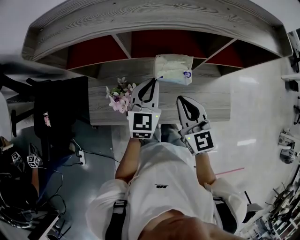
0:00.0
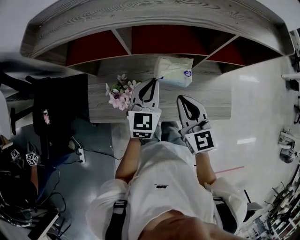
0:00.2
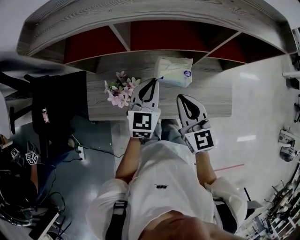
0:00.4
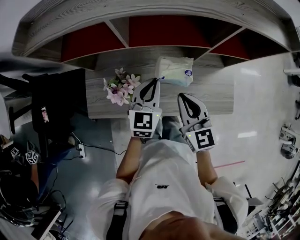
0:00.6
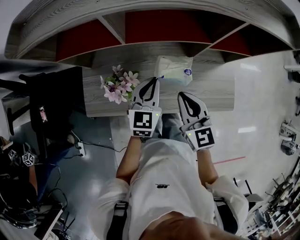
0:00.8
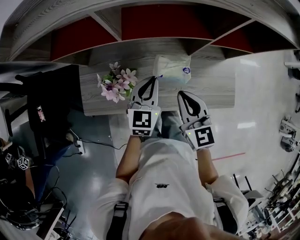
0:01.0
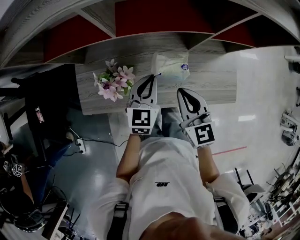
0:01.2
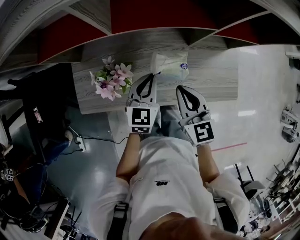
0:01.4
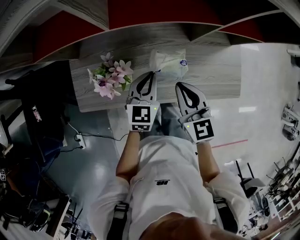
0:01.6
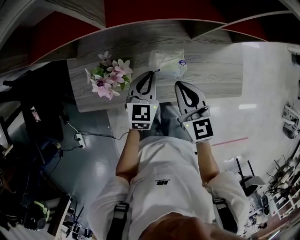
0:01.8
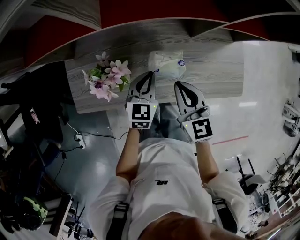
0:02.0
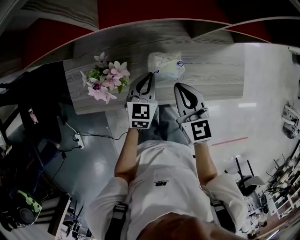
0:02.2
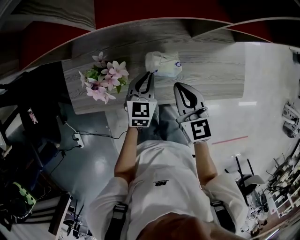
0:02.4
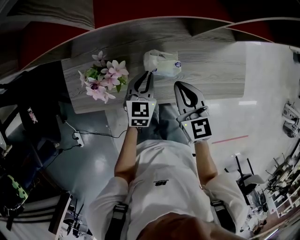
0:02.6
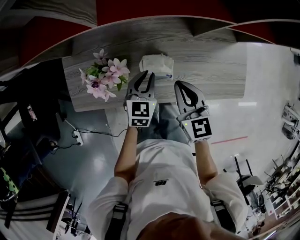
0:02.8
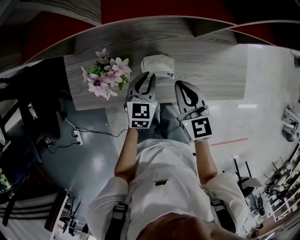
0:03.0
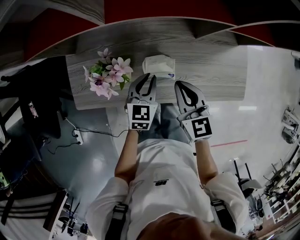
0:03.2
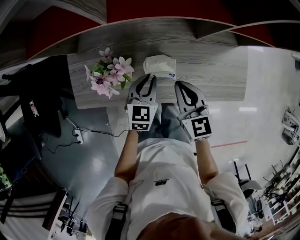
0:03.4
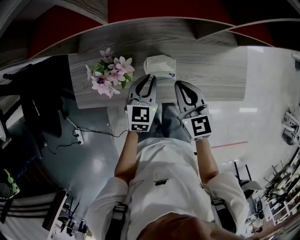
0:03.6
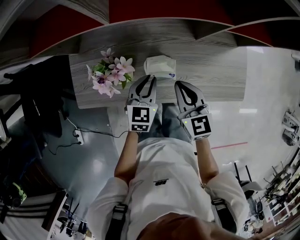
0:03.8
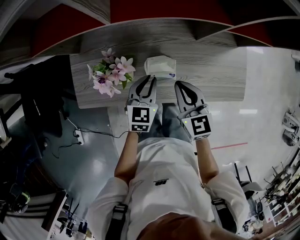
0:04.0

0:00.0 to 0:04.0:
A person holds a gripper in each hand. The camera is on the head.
0:00.0 to 0:01.4: The grippers both shift downward by approximately 10 cm.
0:01.4 to 0:02.6: The right gripper heads downward, covering roughly 5 cm; the left gripper is displaced downward by roughly 10 cm.
0:02.6 to 0:04.0: The grippers move only a little.

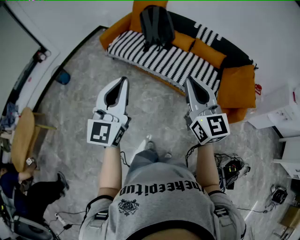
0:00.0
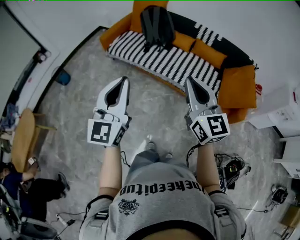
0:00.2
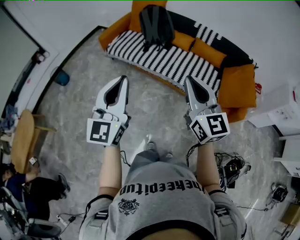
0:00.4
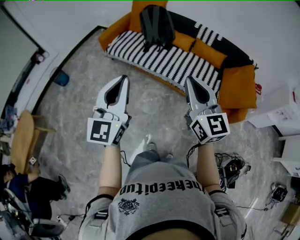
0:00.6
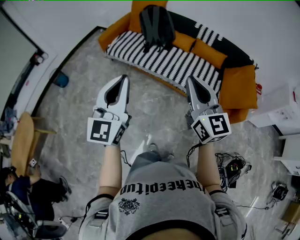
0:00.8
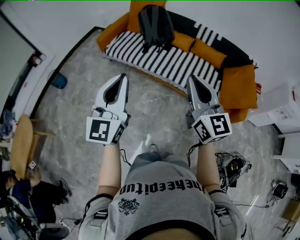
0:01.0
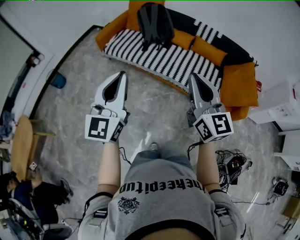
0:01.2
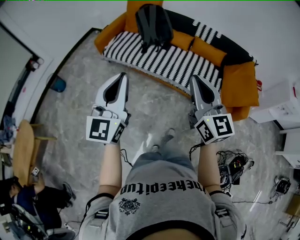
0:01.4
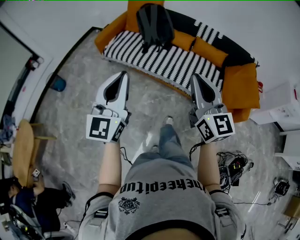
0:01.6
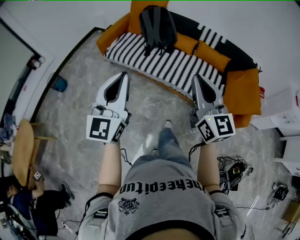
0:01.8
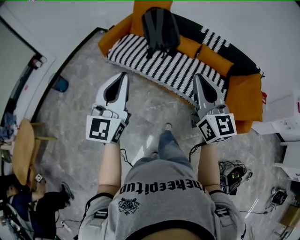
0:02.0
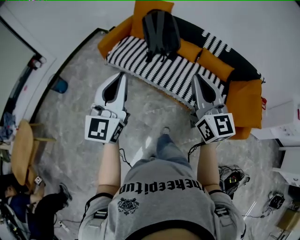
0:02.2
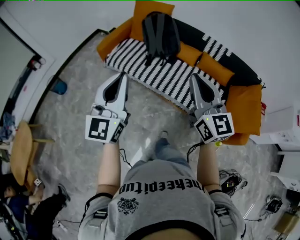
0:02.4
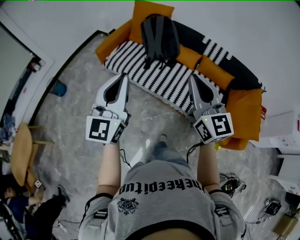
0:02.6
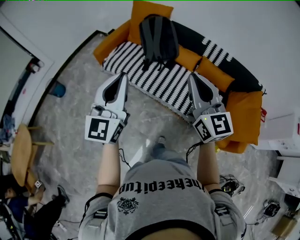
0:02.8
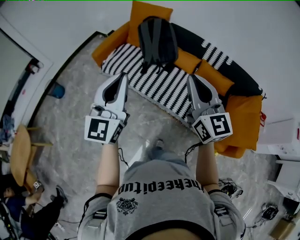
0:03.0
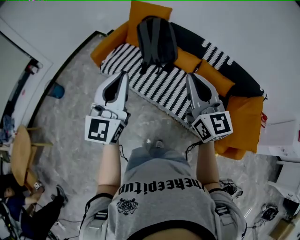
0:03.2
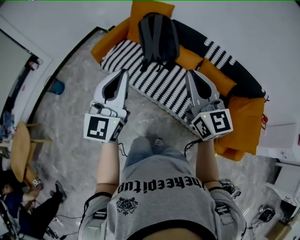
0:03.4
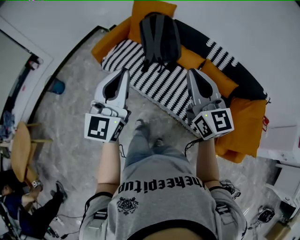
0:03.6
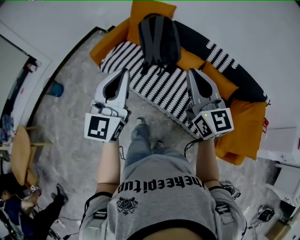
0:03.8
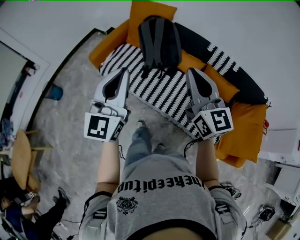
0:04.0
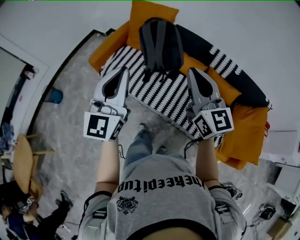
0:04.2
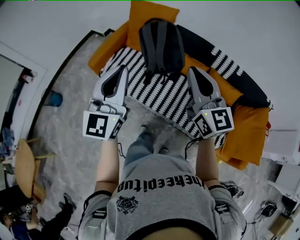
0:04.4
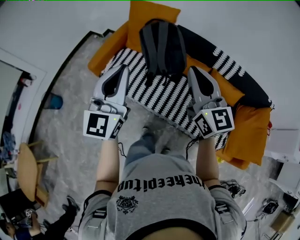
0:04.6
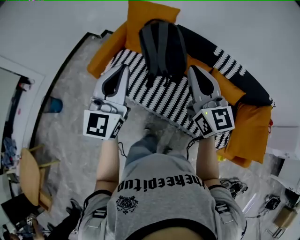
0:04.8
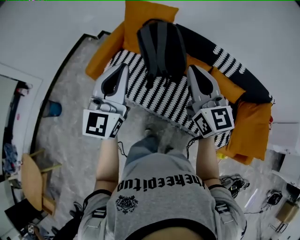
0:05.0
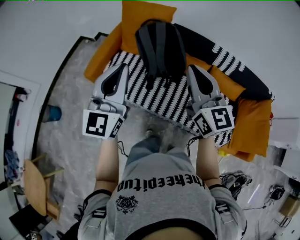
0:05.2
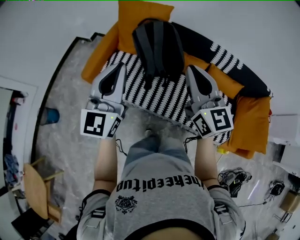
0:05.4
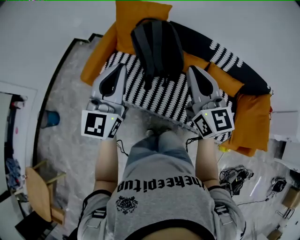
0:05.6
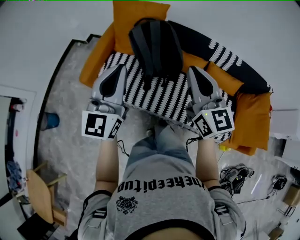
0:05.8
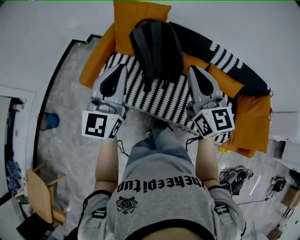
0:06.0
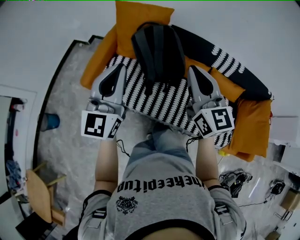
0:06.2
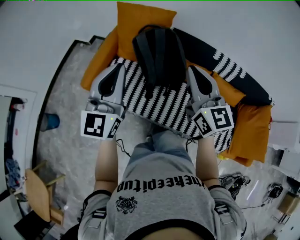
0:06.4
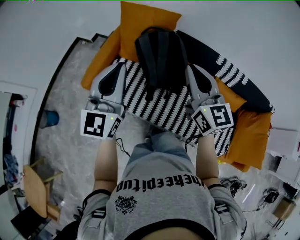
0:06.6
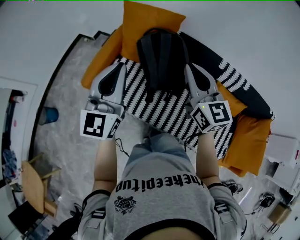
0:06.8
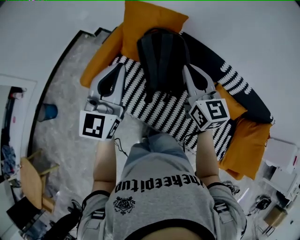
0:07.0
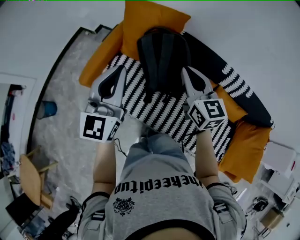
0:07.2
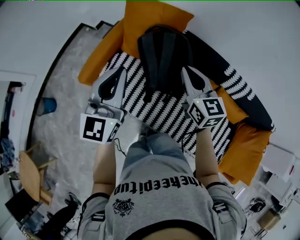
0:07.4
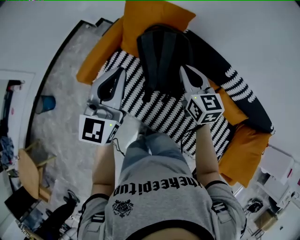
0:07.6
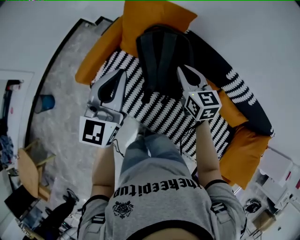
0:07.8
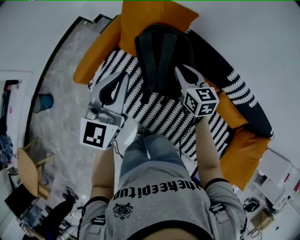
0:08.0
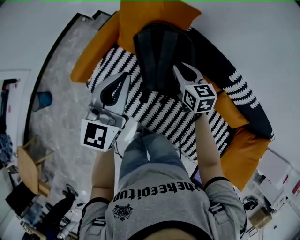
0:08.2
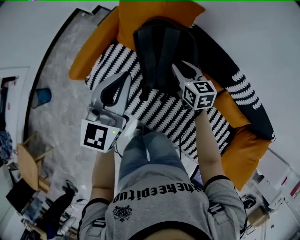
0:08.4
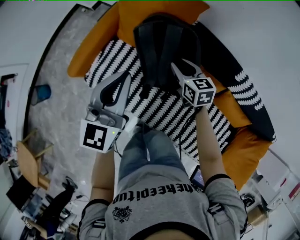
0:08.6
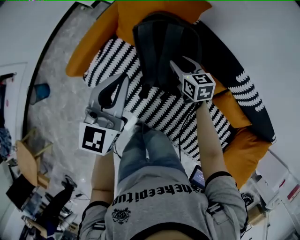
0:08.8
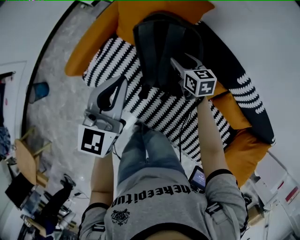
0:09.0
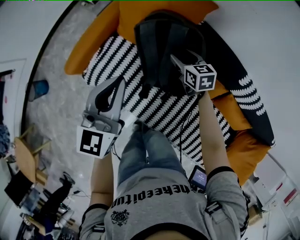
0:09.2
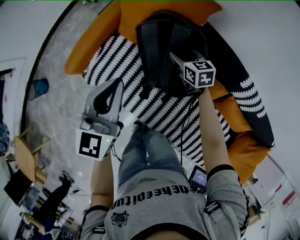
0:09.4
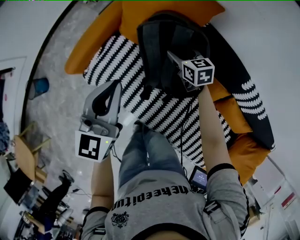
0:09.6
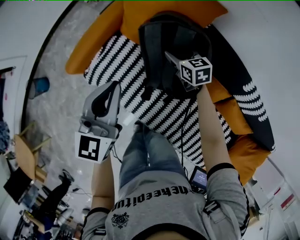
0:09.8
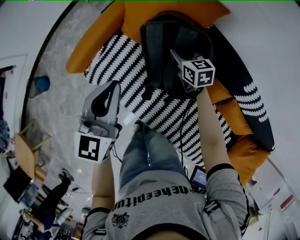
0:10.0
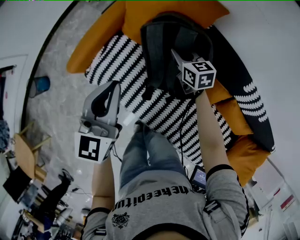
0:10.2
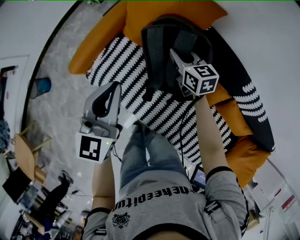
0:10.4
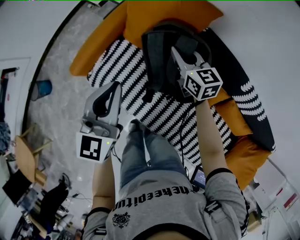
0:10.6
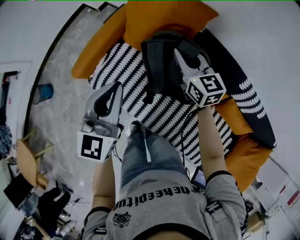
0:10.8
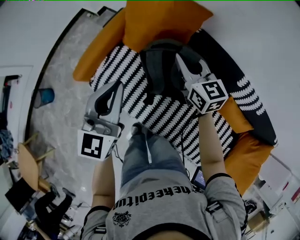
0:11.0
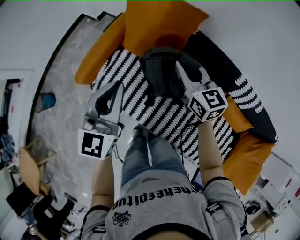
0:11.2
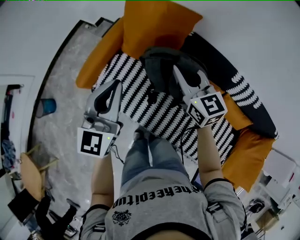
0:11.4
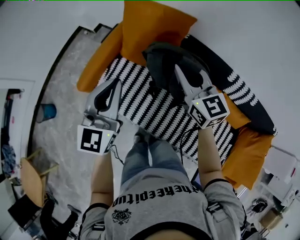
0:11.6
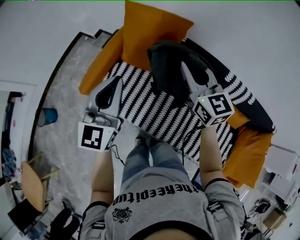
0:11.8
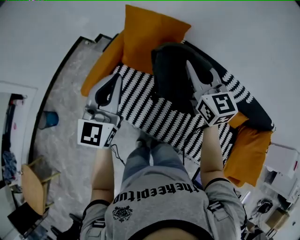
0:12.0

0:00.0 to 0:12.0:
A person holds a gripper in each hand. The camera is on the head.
0:00.0 to 0:01.6: Both grippers travel together forward, some 10 cm.
0:01.6 to 0:03.0: Both grippers travel together forward, about 25 cm.
0:03.0 to 0:04.4: The two grippers go roughly 20 cm forward.
0:04.4 to 0:06.0: Both grippers travel together forward and to the left, roughly 15 cm.
0:06.0 to 0:07.6: The left gripper moves forward, roughly 15 cm. Meanwhile the right gripper goes approximately 25 cm forward and downward, and turns by approximately 20 degrees.
0:07.6 to 0:09.0: The right gripper travels downward and forward by about 25 cm, turns by roughly 20 degrees, and opens up. Meanwhile the left gripper heads downward and forward, covering about 10 cm.
0:09.0 to 0:10.4: The right gripper moves roughly 5 cm, and closes up.
0:10.4 to 0:12.0: The left gripper travels upward and backward by some 15 cm; the right gripper shifts approximately 35 cm upward and backward, and swivels approximately 30 degrees.

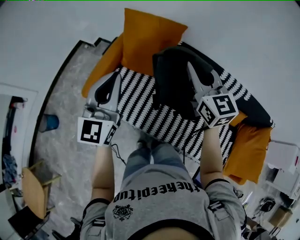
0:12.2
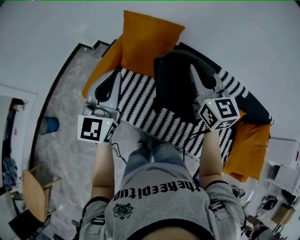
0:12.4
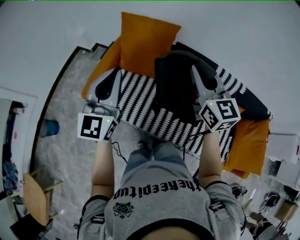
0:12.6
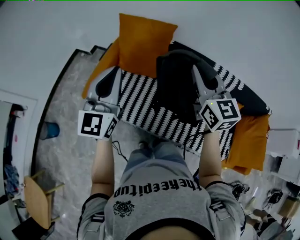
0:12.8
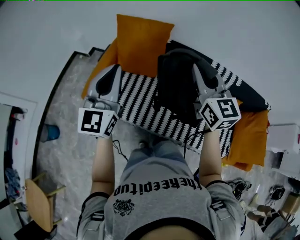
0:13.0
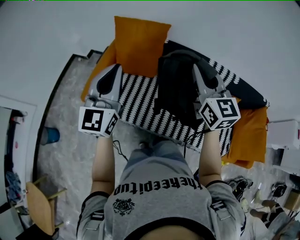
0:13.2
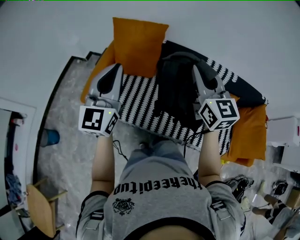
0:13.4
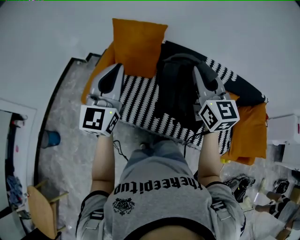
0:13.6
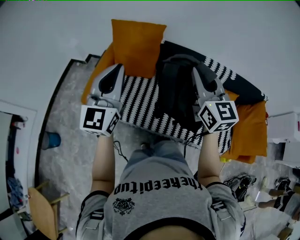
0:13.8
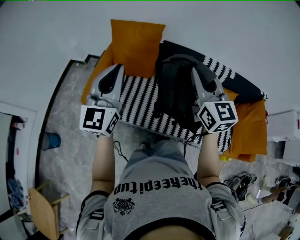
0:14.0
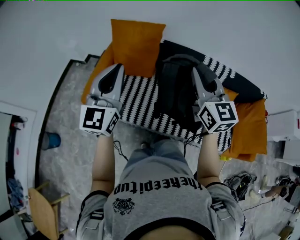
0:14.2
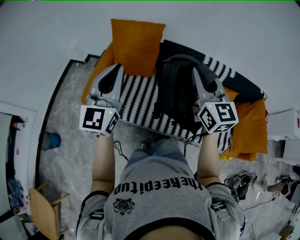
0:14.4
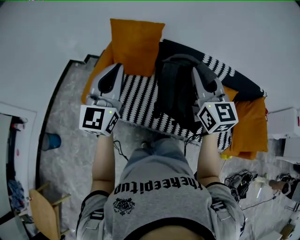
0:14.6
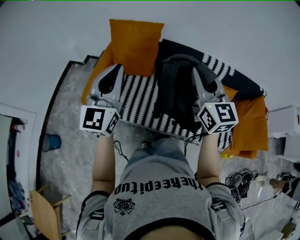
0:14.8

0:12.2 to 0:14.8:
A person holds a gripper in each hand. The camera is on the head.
0:12.2 to 0:13.4: The left gripper shifts about 5 cm backward. Meanwhile the right gripper goes roughly 15 cm backward.
0:13.4 to 0:14.8: The grippers move only a little.

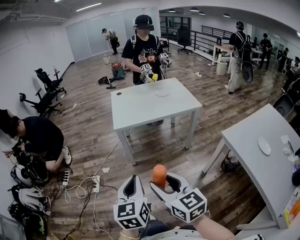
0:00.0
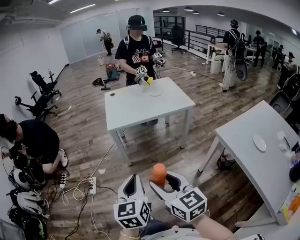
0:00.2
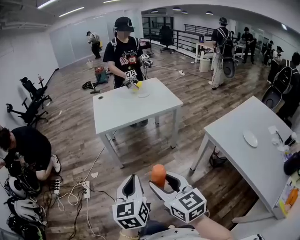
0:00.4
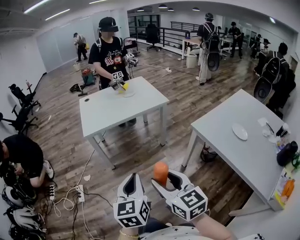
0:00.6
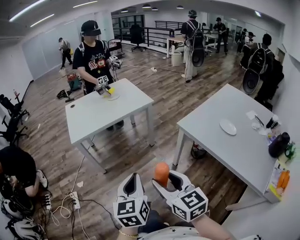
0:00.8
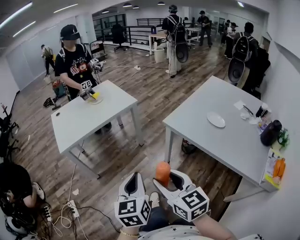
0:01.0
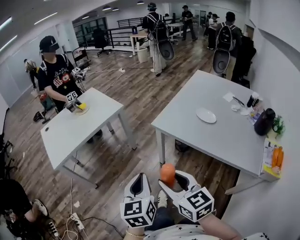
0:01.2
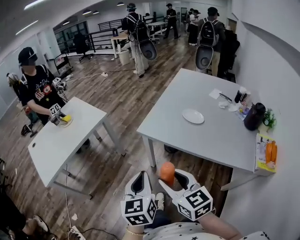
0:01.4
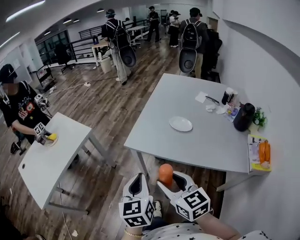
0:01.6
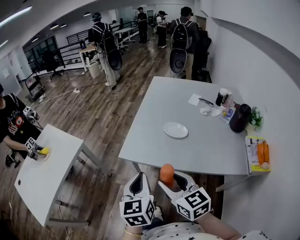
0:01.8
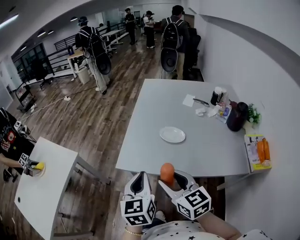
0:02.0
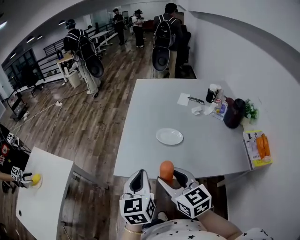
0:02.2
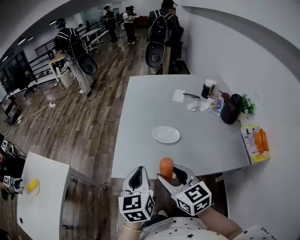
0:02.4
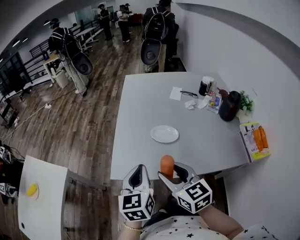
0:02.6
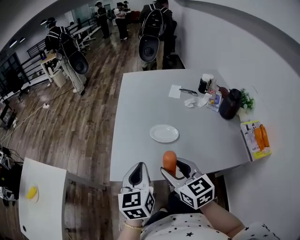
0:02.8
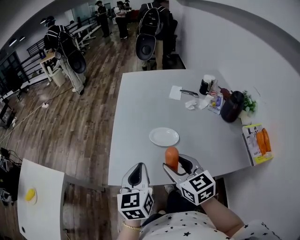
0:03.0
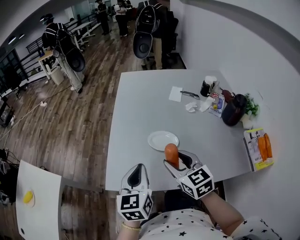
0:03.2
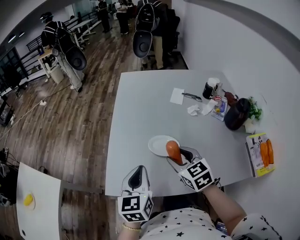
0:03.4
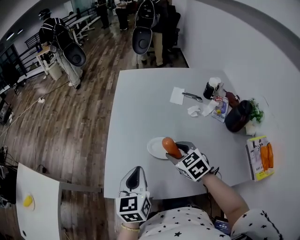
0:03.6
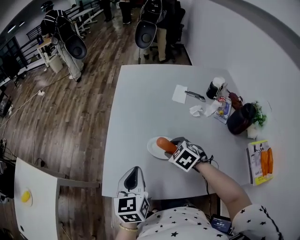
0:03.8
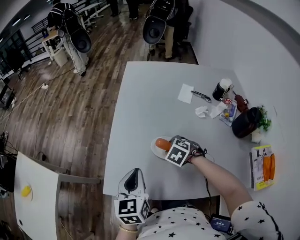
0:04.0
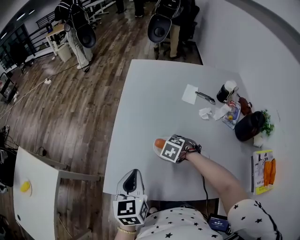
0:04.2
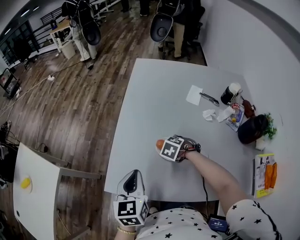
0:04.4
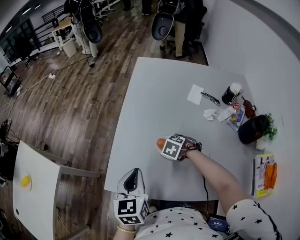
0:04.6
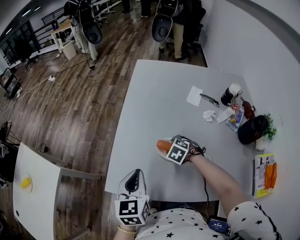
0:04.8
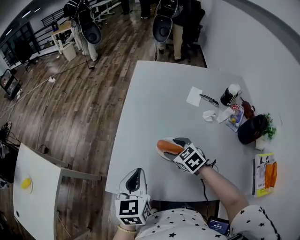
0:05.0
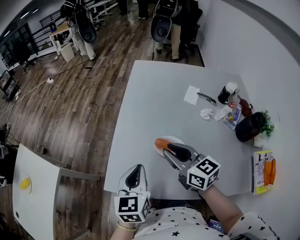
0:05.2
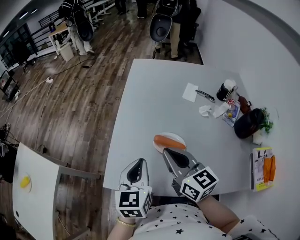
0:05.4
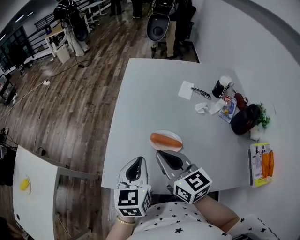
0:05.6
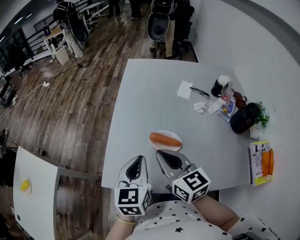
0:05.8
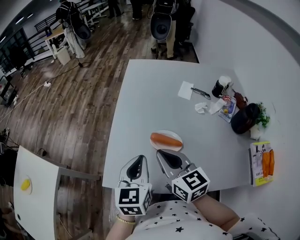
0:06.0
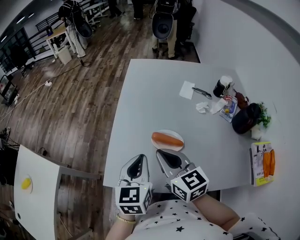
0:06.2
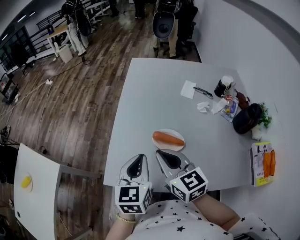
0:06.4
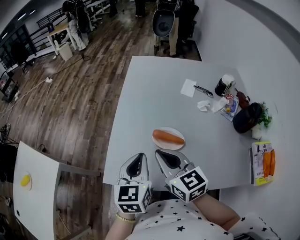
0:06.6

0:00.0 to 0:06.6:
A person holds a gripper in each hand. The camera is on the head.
0:00.0 to 0:01.6: The pair of grippers is taken approximately 50 cm. The left gripper swivels roughly 50 degrees; the right gripper turns by roughly 50 degrees.
0:01.6 to 0:03.2: Both grippers travel together forward, roughly 30 cm. The right gripper turns by some 20 degrees; the left gripper turns by about 20 degrees.
0:03.2 to 0:05.0: The left gripper shifts by approximately 5 cm. Meanwhile the right gripper shifts by some 20 cm, and swivels about 30 degrees.
0:05.0 to 0:06.6: The right gripper goes roughly 20 cm upward, backward and to the left, angles its fingers upward, by approximately 30 degrees, and closes its fingers.
